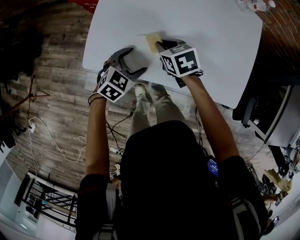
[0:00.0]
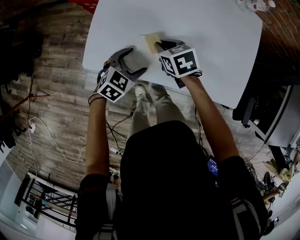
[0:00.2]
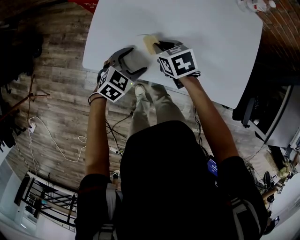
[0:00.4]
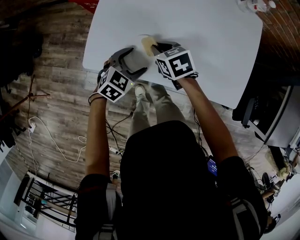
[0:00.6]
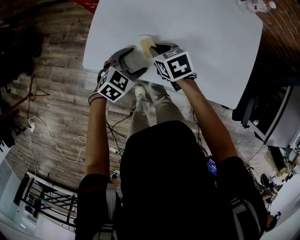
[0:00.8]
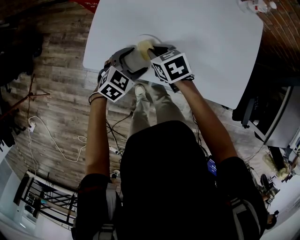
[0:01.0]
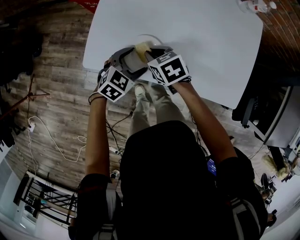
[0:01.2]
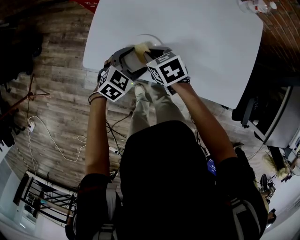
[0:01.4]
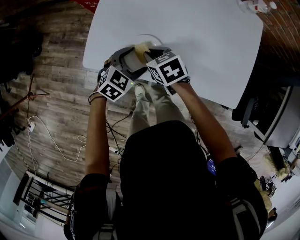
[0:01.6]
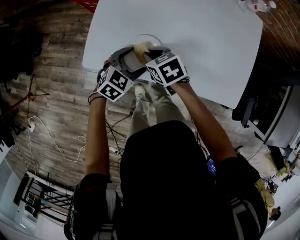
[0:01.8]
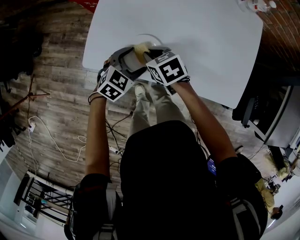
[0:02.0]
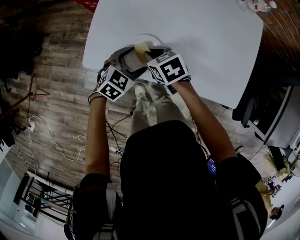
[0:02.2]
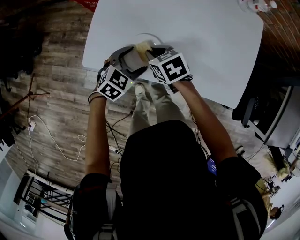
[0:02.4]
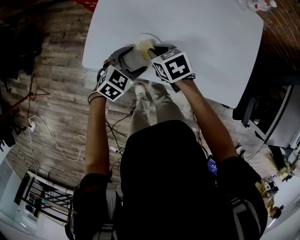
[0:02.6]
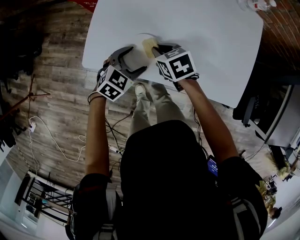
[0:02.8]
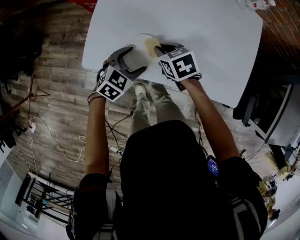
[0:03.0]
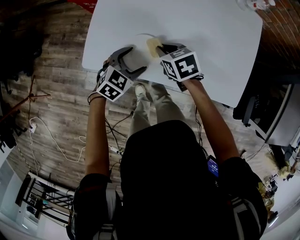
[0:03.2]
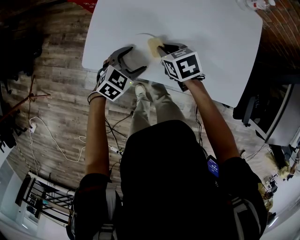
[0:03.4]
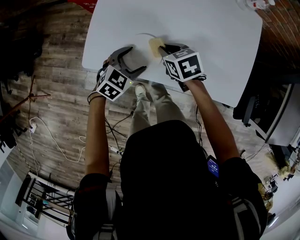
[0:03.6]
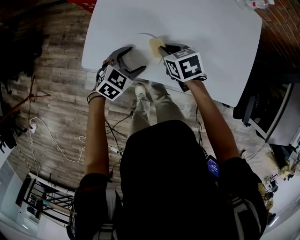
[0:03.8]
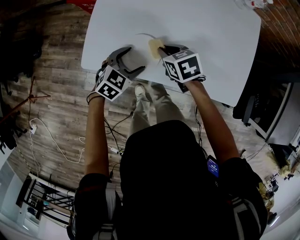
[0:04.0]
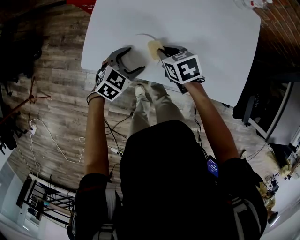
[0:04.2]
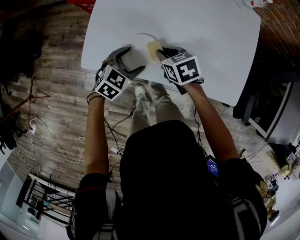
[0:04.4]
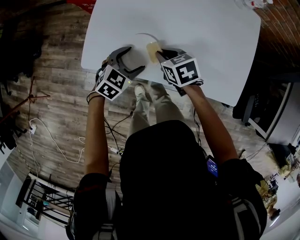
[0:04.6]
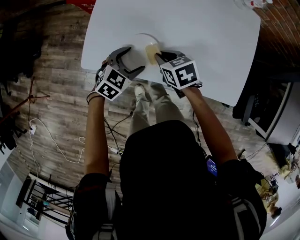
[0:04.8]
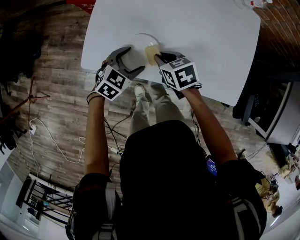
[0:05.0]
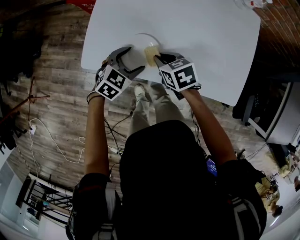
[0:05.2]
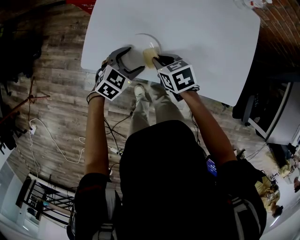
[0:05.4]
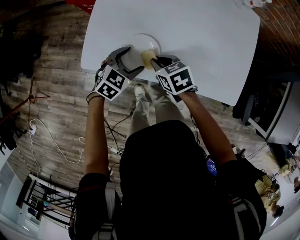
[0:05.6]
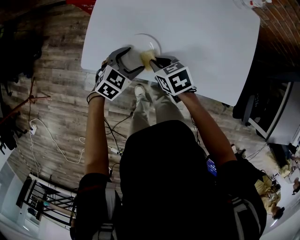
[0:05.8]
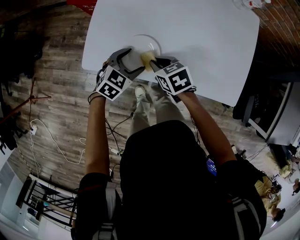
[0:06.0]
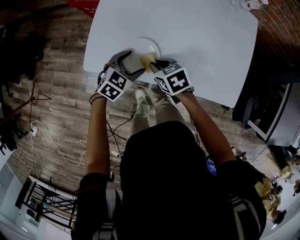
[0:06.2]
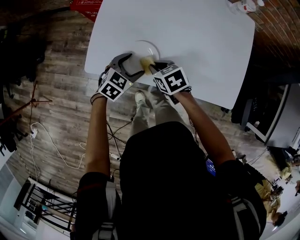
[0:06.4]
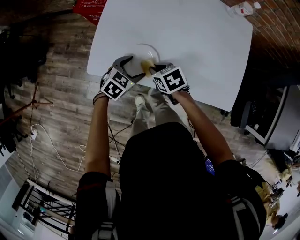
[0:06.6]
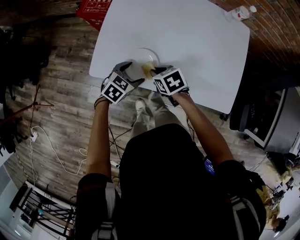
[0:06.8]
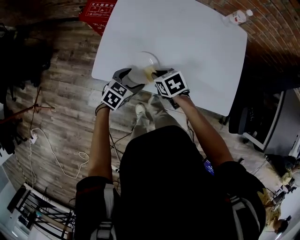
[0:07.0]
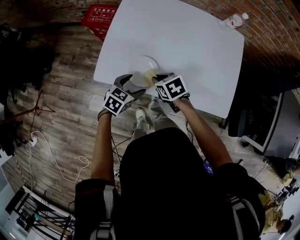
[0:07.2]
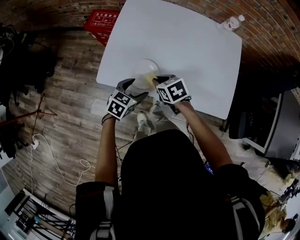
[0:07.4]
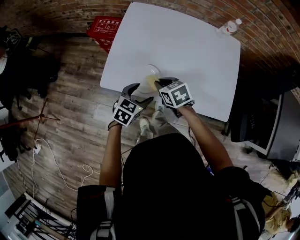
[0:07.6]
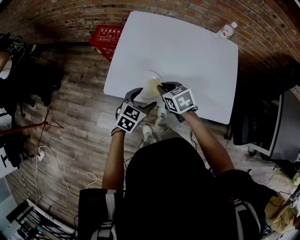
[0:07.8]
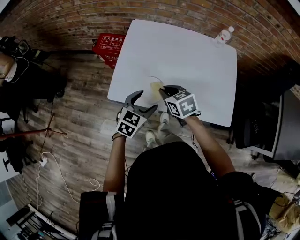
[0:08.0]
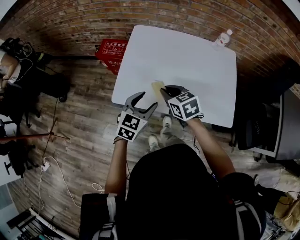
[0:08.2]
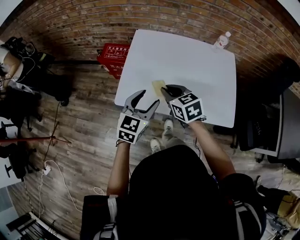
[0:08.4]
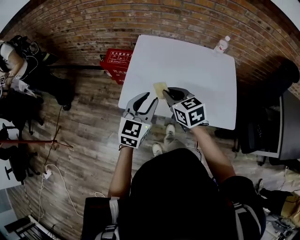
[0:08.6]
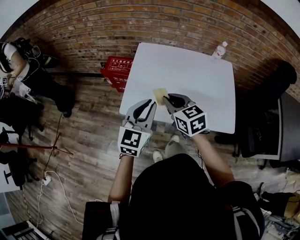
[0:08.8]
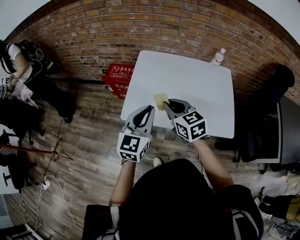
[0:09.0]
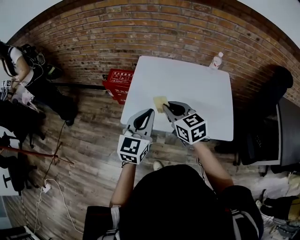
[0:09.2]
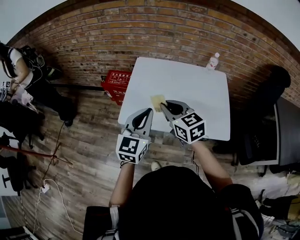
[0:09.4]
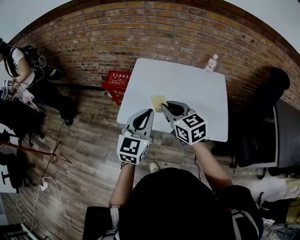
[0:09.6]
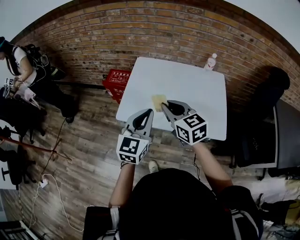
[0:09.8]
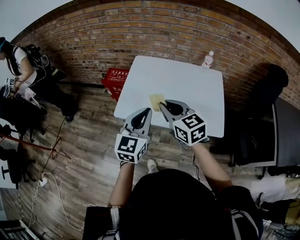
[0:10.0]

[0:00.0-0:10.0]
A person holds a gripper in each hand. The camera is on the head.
0:00.0 to 0:01.4: The right gripper changes place by some 5 cm.
0:01.4 to 0:02.8: The grippers make only small movements.
0:02.8 to 0:04.2: The grippers make only small movements.
0:04.2 to 0:05.8: The right gripper changes place by some 5 cm.
0:05.8 to 0:07.2: The grippers stay close to where they were, moving slightly.
0:07.2 to 0:08.6: The grippers both shift upward by some 25 cm. The right gripper swivels roughly 30 degrees. The left gripper rotates some 40 degrees, and closes up.
0:08.6 to 0:10.0: The two grippers go about 15 cm upward and backward. The left gripper closes.

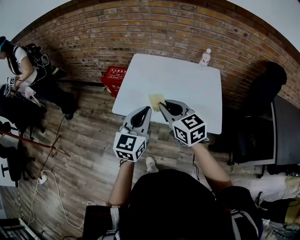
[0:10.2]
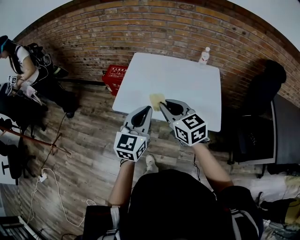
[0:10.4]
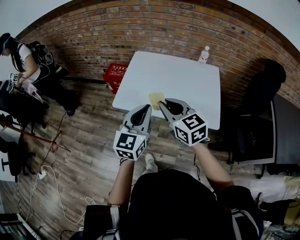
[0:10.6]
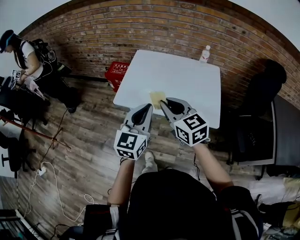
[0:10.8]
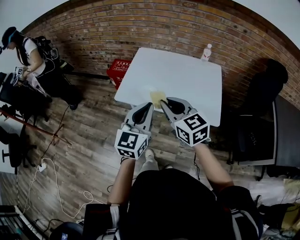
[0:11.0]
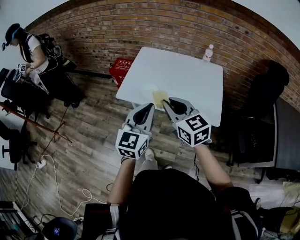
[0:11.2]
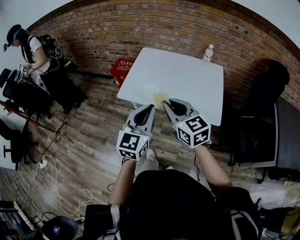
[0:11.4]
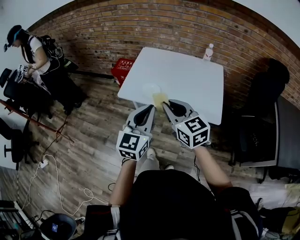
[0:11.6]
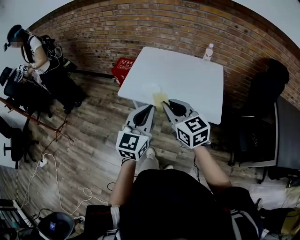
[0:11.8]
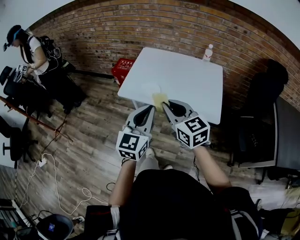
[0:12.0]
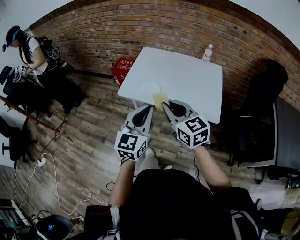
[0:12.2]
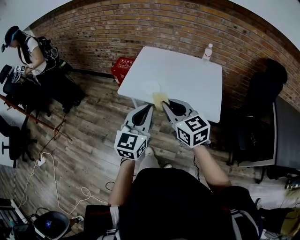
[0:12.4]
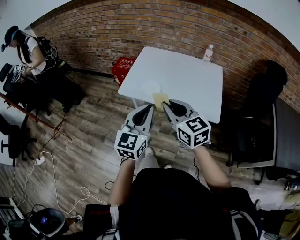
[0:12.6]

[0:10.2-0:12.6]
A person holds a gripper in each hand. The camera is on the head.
0:10.2 to 0:11.4: Both grippers move backward, some 10 cm.
0:11.4 to 0:12.6: The grippers move only a little.

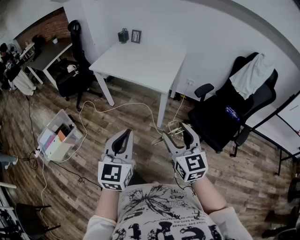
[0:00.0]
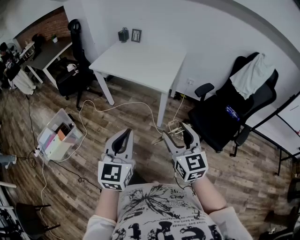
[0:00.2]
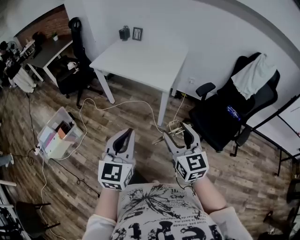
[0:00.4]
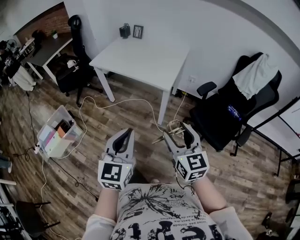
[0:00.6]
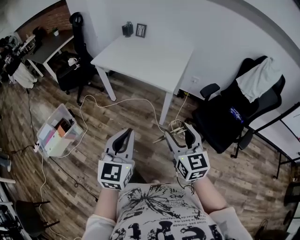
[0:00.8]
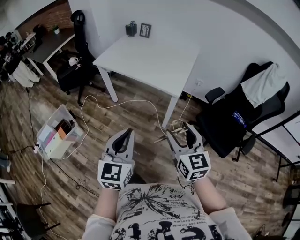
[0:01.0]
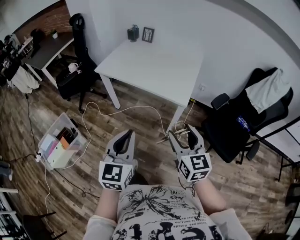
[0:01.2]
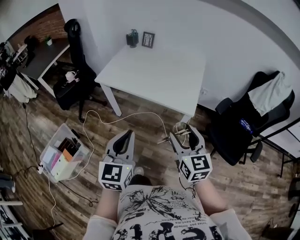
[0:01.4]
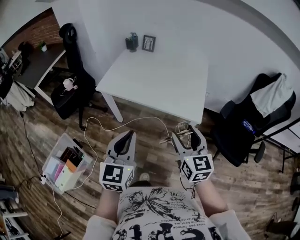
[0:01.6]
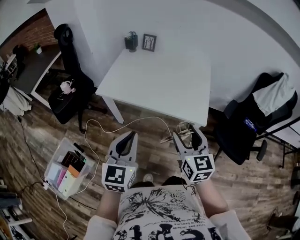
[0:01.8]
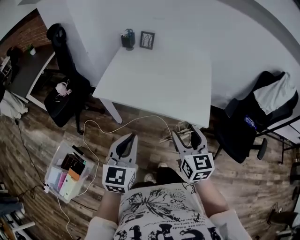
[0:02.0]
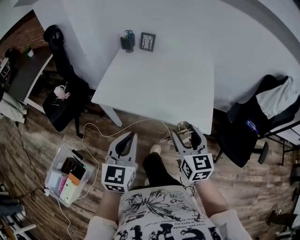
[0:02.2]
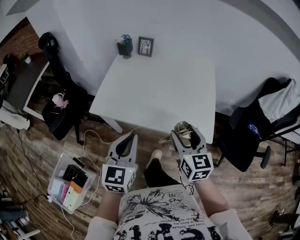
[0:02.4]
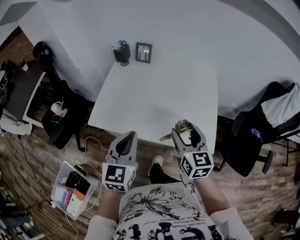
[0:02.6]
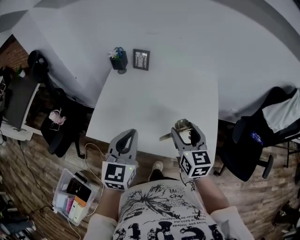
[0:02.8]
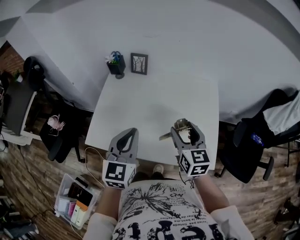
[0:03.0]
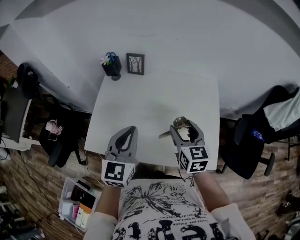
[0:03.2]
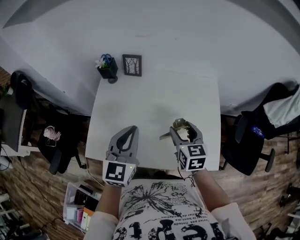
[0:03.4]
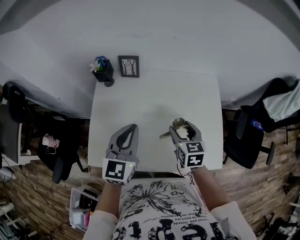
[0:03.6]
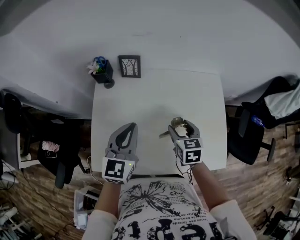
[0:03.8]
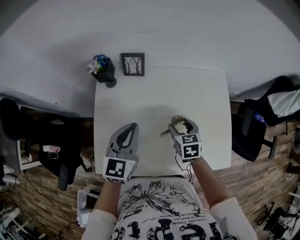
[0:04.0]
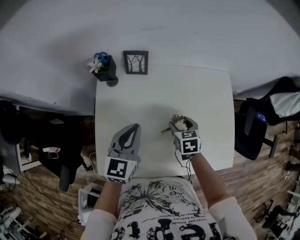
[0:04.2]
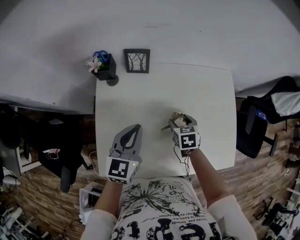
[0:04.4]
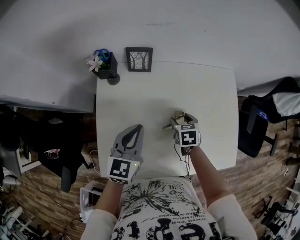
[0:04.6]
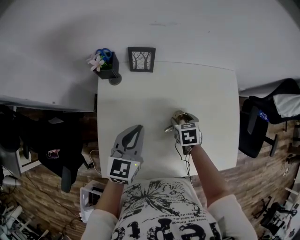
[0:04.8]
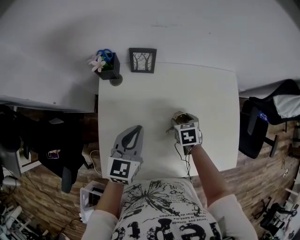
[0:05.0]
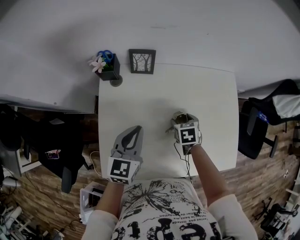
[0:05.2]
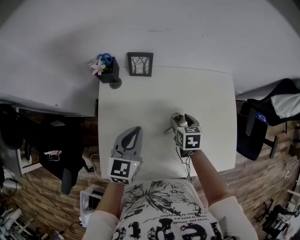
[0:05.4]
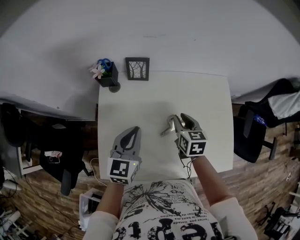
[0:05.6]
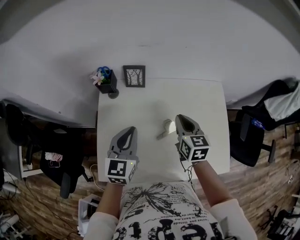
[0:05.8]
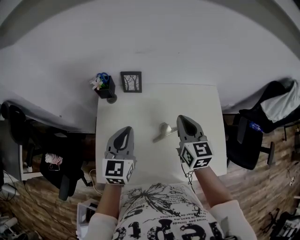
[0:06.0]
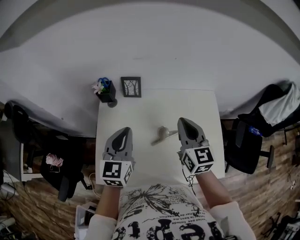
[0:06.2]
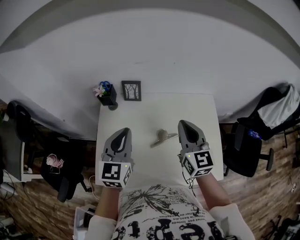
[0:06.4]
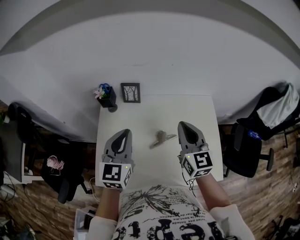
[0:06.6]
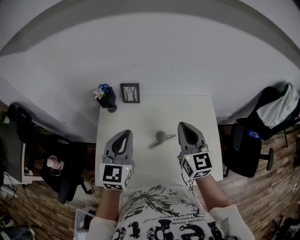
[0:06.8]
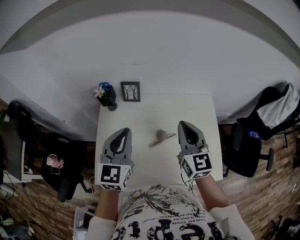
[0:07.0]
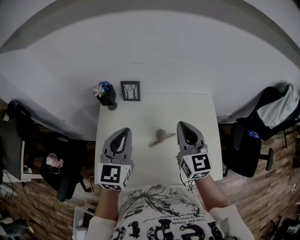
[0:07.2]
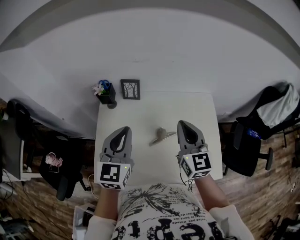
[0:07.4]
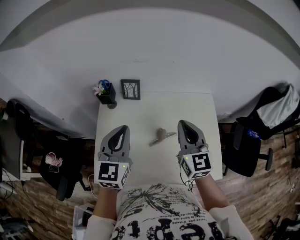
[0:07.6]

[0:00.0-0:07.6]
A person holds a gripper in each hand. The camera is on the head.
0:00.0 to 0:01.6: The two grippers go approximately 35 cm forward and to the left.
0:01.6 to 0:03.0: The grippers both shift forward by roughly 40 cm.
0:03.0 to 0:04.6: The left gripper shifts roughly 25 cm forward, downward and to the left, and swivels about 20 degrees. The right gripper is displaced downward, forward and to the left by approximately 30 cm, and angles its fingers downward, by roughly 40 degrees.
0:04.6 to 0:06.0: The left gripper goes about 10 cm upward. The right gripper shifts about 25 cm upward, tilts its fingers approximately 40 degrees upward, and closes its fingers.
0:06.0 to 0:07.6: The two grippers go about 5 cm upward.

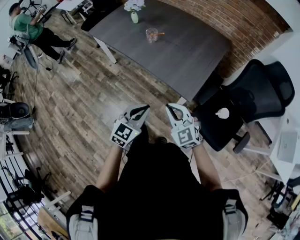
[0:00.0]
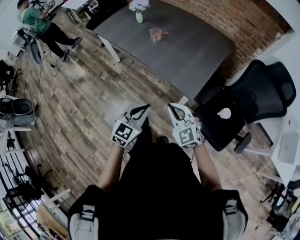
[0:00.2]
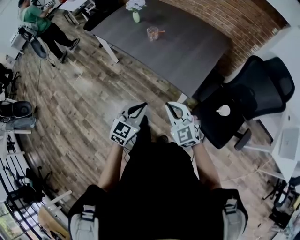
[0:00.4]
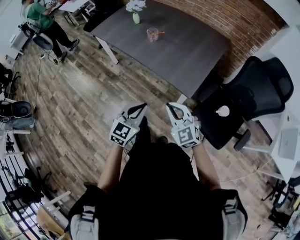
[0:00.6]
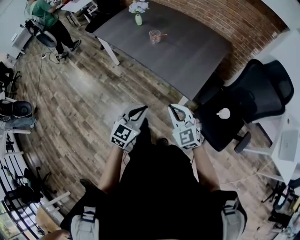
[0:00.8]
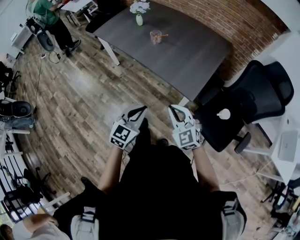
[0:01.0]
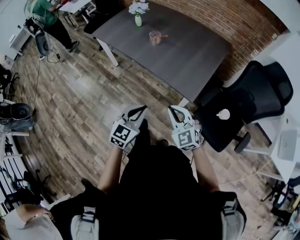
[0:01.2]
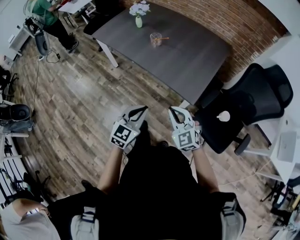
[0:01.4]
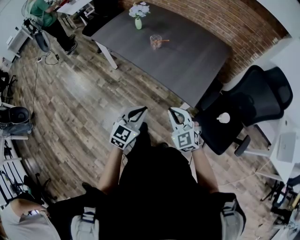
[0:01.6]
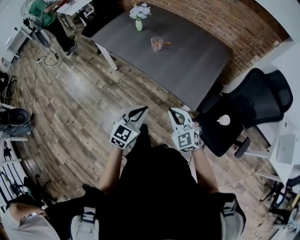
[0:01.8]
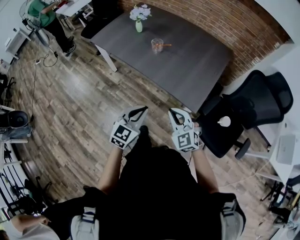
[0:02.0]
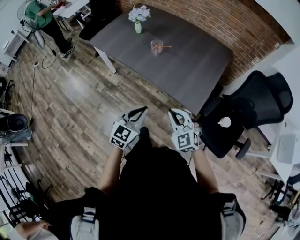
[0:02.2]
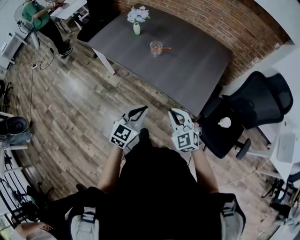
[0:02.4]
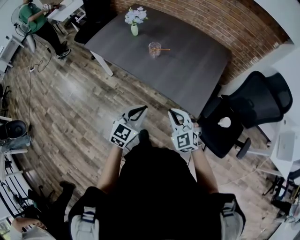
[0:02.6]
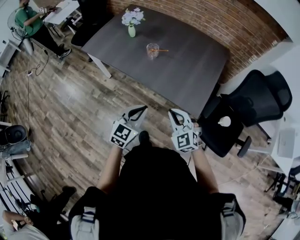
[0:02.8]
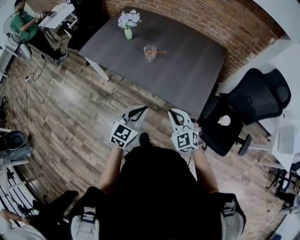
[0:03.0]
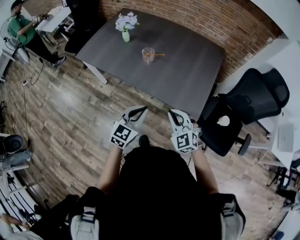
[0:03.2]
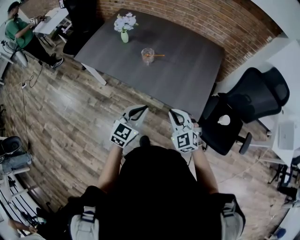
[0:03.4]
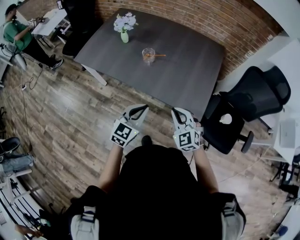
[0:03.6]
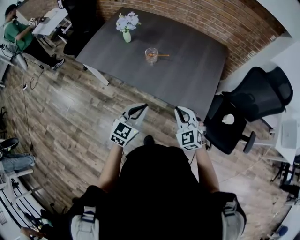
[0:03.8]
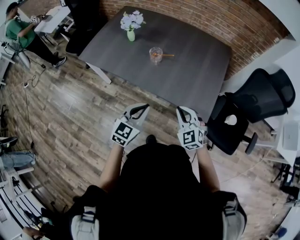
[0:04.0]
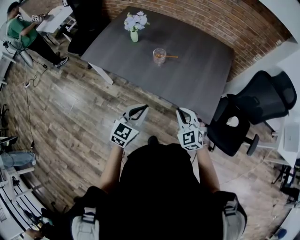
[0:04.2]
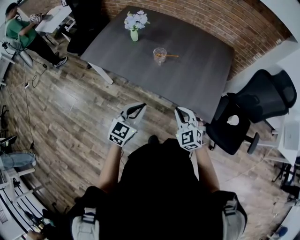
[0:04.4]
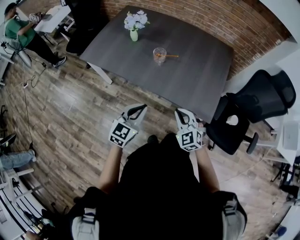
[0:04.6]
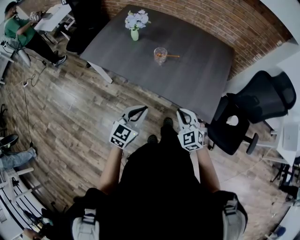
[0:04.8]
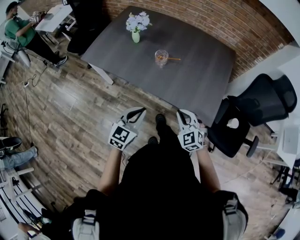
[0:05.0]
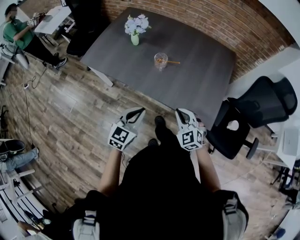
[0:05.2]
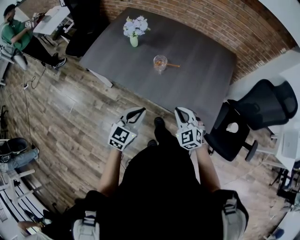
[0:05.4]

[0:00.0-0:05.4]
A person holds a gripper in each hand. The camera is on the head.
0:00.0 to 0:01.4: There are only small adjustments of the grippers.
0:01.4 to 0:02.8: Both grippers move forward and to the left, about 15 cm.
0:02.8 to 0:04.0: The right gripper shifts about 5 cm forward. The left gripper is displaced forward and to the left by roughly 10 cm.
0:04.0 to 0:05.4: The left gripper heads forward and to the left, covering approximately 10 cm; the right gripper travels forward by about 5 cm.
